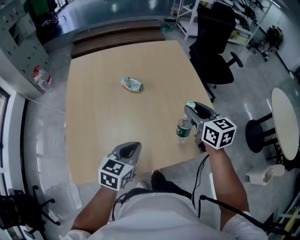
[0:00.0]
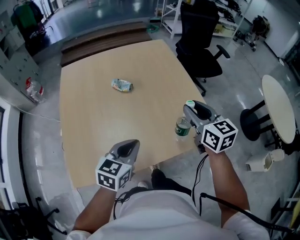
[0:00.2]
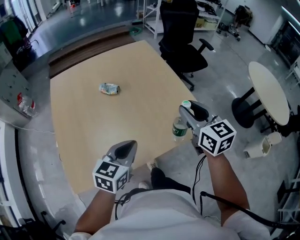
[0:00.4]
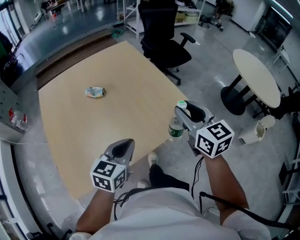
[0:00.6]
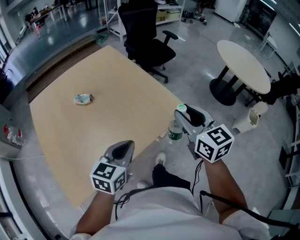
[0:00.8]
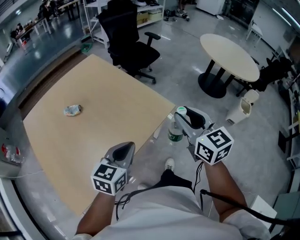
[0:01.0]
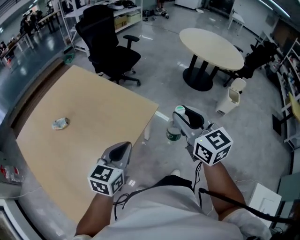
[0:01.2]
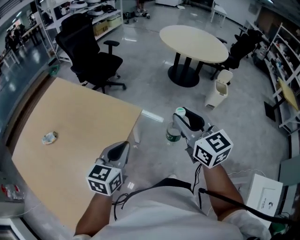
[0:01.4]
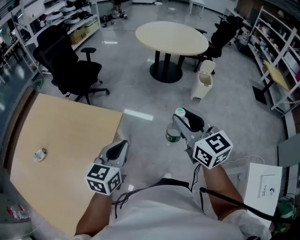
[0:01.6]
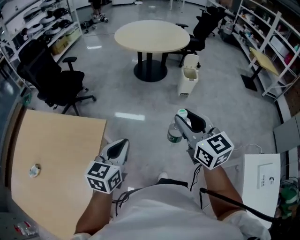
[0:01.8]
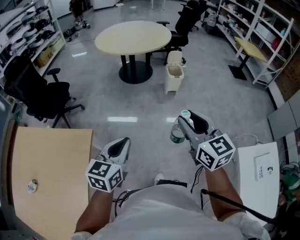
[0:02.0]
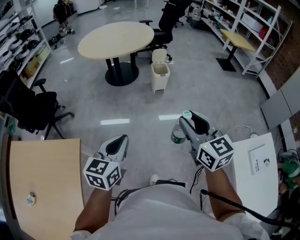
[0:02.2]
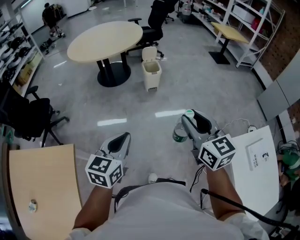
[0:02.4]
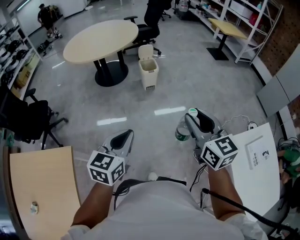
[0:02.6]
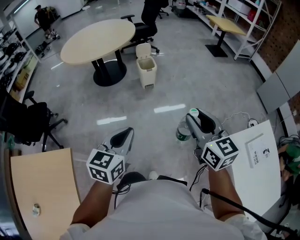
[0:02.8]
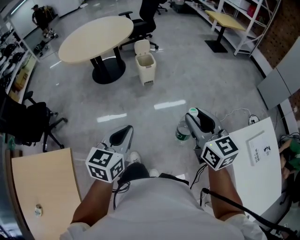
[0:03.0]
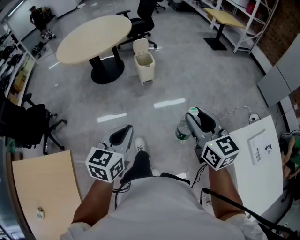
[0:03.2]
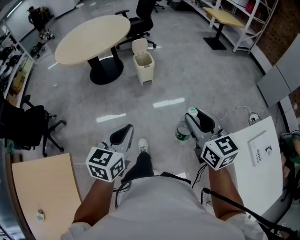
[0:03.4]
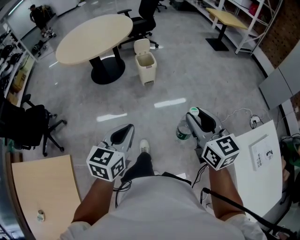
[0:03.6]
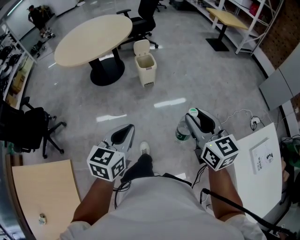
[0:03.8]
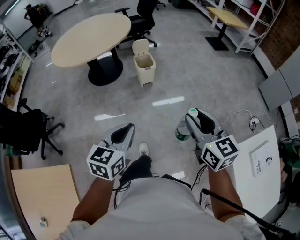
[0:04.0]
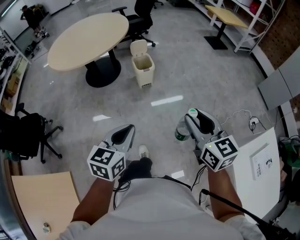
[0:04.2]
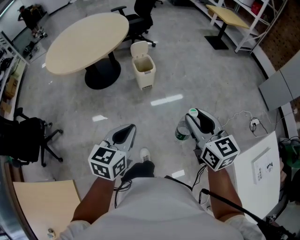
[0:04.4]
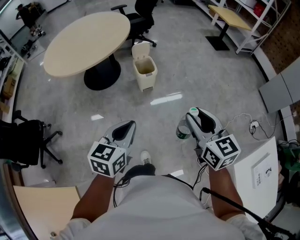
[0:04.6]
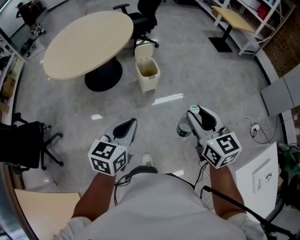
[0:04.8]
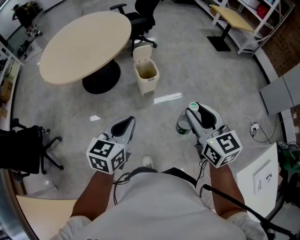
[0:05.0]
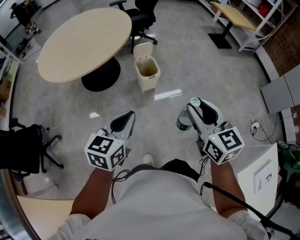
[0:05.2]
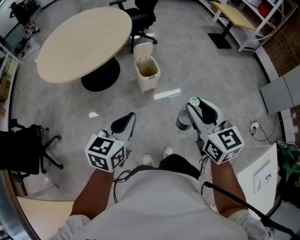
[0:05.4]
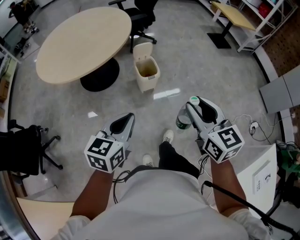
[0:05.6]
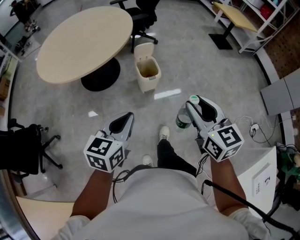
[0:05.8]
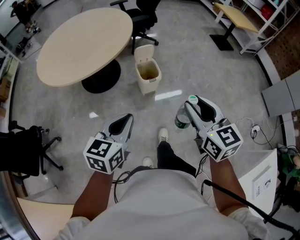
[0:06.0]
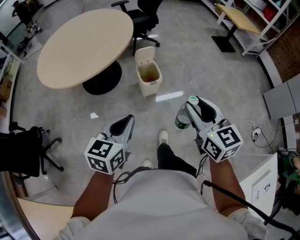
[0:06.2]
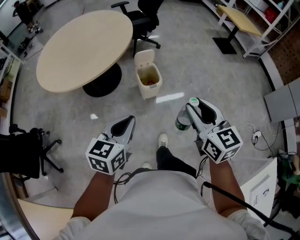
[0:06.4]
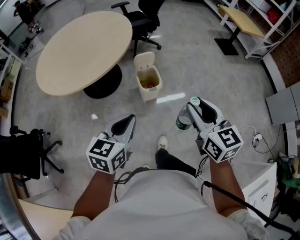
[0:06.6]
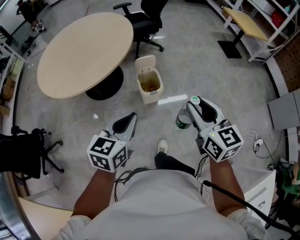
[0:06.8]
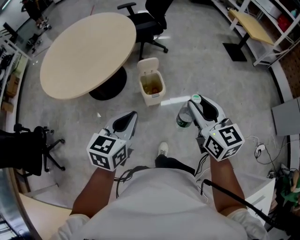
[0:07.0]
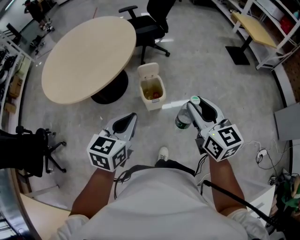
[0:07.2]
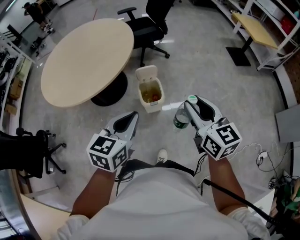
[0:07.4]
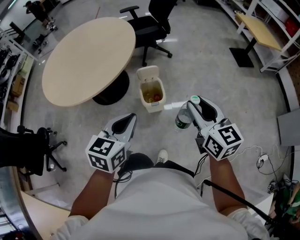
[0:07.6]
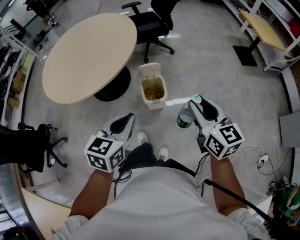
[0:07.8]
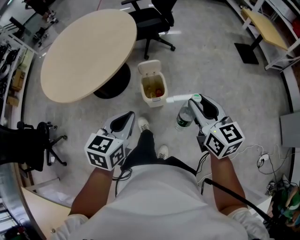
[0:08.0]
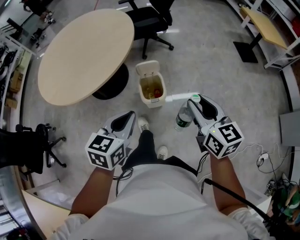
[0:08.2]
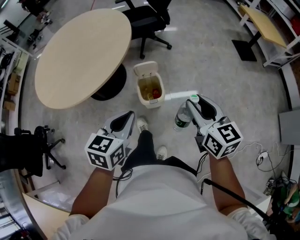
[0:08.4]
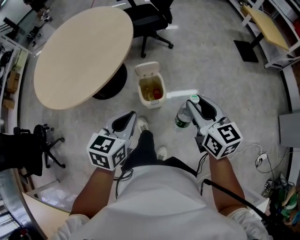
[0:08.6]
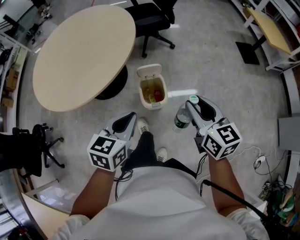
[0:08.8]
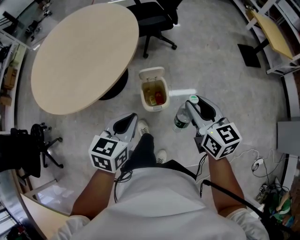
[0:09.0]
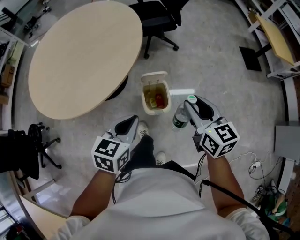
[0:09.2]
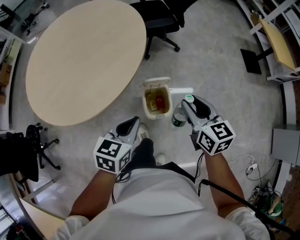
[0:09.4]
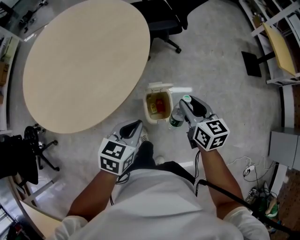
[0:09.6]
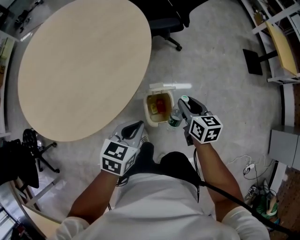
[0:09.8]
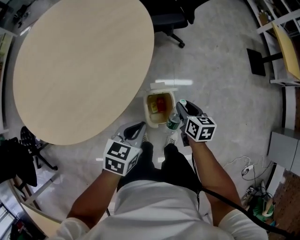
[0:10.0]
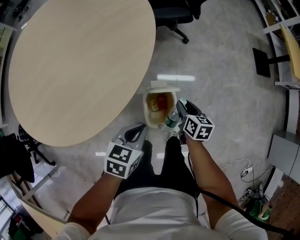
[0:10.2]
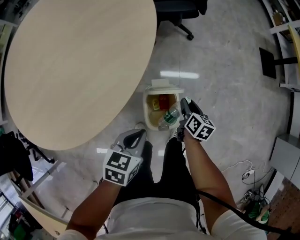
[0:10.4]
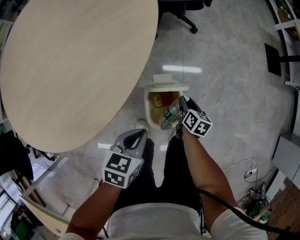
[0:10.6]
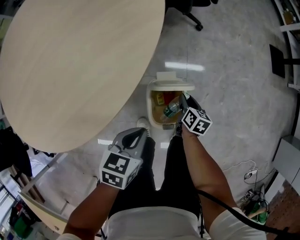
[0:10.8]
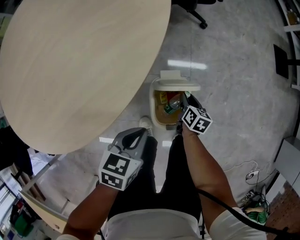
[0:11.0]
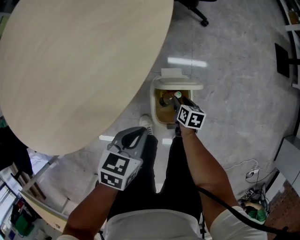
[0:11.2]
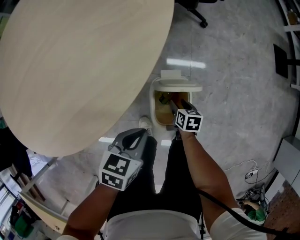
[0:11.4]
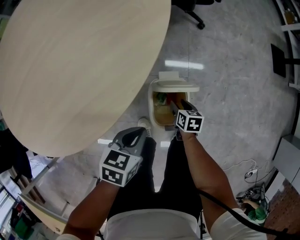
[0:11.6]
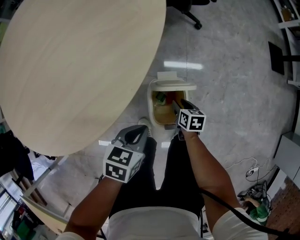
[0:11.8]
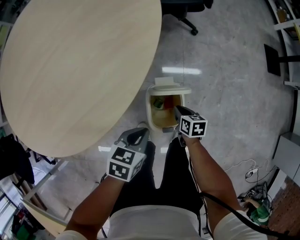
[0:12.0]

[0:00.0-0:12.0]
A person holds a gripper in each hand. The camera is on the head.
0:00.0 to 0:01.6: The left gripper changes place by about 35 cm, and rotates some 50 degrees. Meanwhile the right gripper shifts by roughly 50 cm, and swivels some 60 degrees.
0:01.6 to 0:03.0: The left gripper moves some 35 cm, and rotates about 30 degrees. Meanwhile the right gripper ends up approximately 35 cm from where it was, and changes its angle by about 40 degrees.
0:03.0 to 0:04.4: The grippers both shift forward by some 15 cm.
0:04.4 to 0:06.0: The right gripper heads forward and to the left, covering about 20 cm. The left gripper is displaced forward by some 20 cm.
0:06.0 to 0:07.6: The left gripper travels forward and to the right by some 20 cm, while the right gripper heads forward, covering some 20 cm.
0:07.6 to 0:09.0: Both grippers move forward and downward, some 15 cm.
0:09.0 to 0:10.4: The right gripper moves downward and forward, about 40 cm, and rotates approximately 40 degrees; the left gripper moves downward and forward, some 20 cm.
0:10.4 to 0:12.0: The left gripper is displaced downward by some 5 cm. The right gripper moves downward and backward, about 10 cm, turns by about 30 degrees, and closes its fingers.

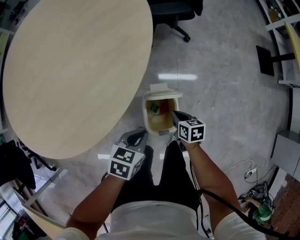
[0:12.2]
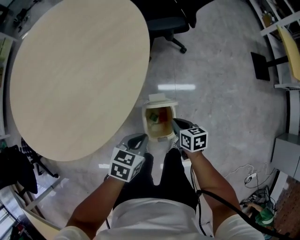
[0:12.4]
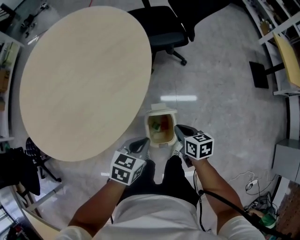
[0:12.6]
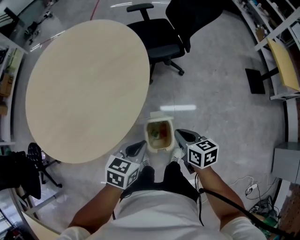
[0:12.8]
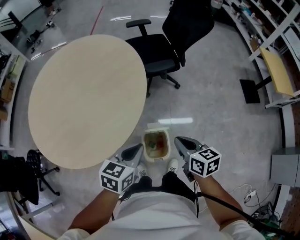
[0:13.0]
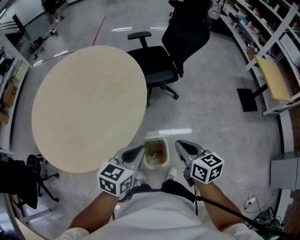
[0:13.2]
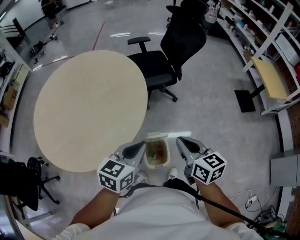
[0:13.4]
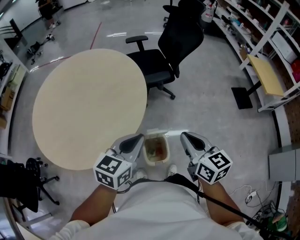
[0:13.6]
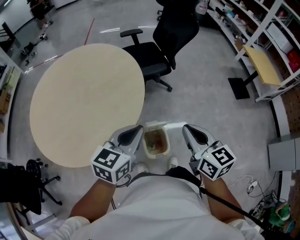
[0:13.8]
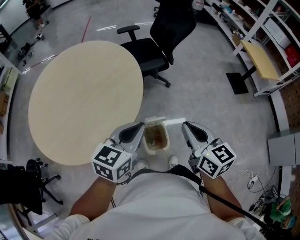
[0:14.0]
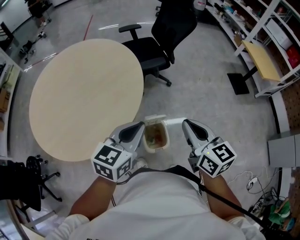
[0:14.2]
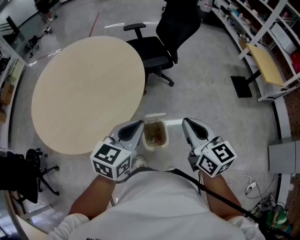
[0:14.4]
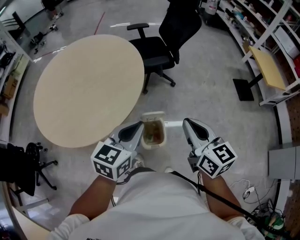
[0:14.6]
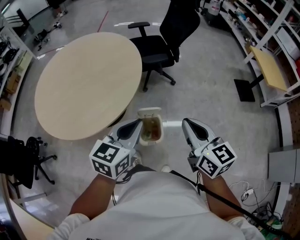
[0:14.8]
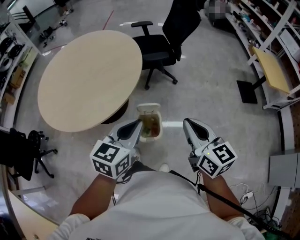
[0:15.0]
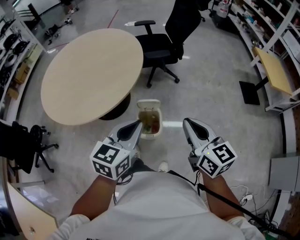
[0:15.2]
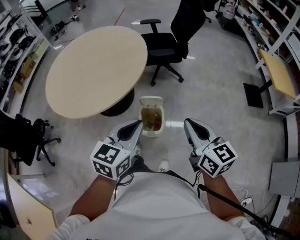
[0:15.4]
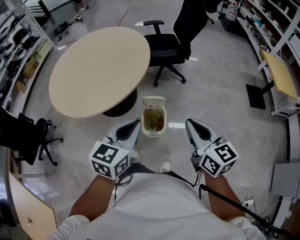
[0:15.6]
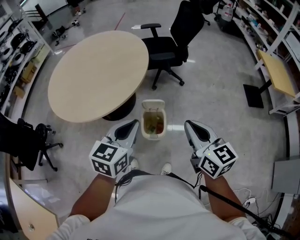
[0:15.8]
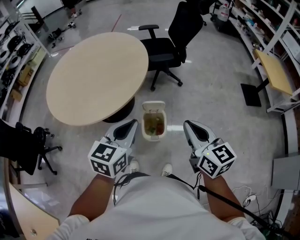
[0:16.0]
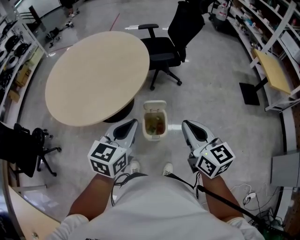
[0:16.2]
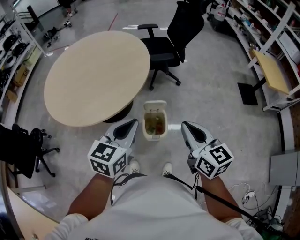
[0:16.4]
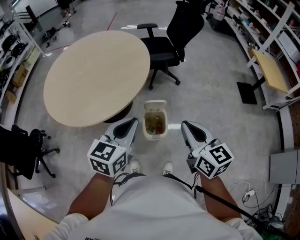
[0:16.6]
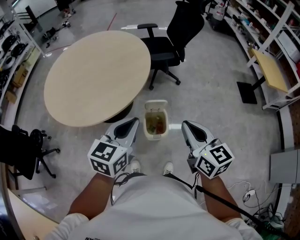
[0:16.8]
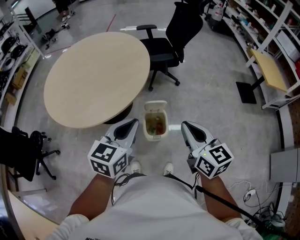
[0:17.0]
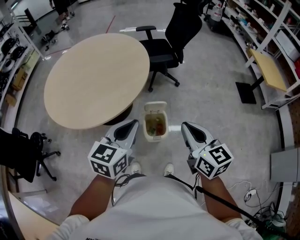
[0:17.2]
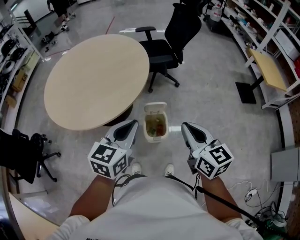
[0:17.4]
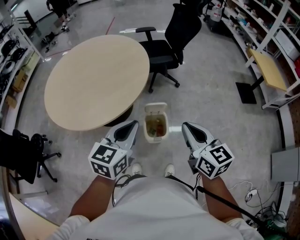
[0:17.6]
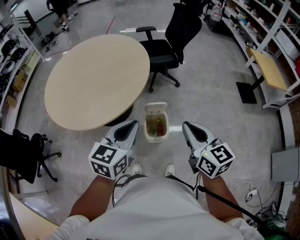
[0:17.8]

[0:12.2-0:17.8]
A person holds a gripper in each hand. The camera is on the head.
0:12.2 to 0:13.6: Both grippers move upward, roughly 35 cm. The right gripper points its fingers some 30 degrees further upward. Meanwhile the left gripper swivels roughly 30 degrees.
0:13.6 to 0:15.0: The left gripper moves backward and to the right, about 15 cm; the right gripper moves to the right and backward, some 10 cm.
0:15.0 to 0:16.4: The right gripper changes place by roughly 5 cm, while the left gripper moves to the left, roughly 5 cm.
0:16.4 to 0:17.8: Both grippers stay about where they are.

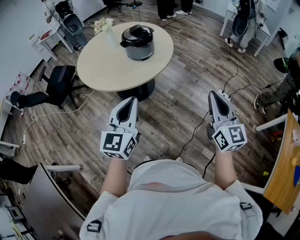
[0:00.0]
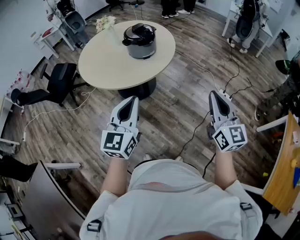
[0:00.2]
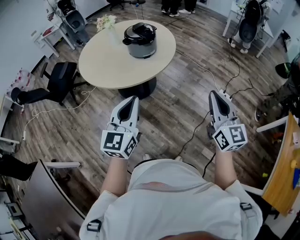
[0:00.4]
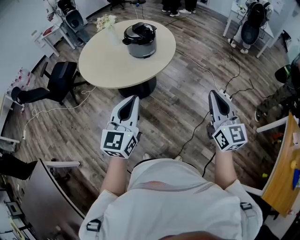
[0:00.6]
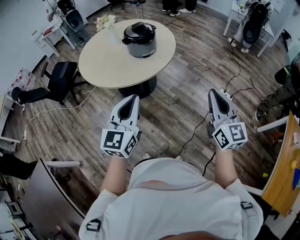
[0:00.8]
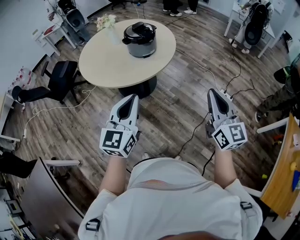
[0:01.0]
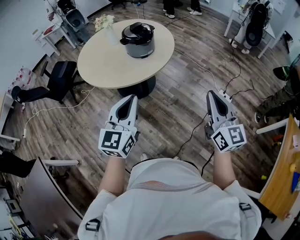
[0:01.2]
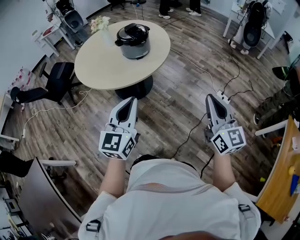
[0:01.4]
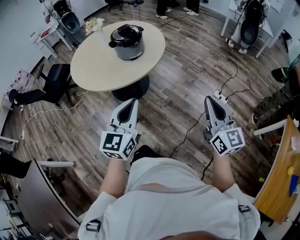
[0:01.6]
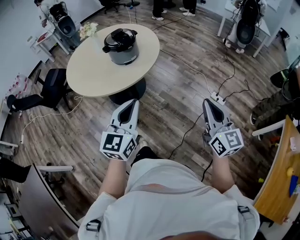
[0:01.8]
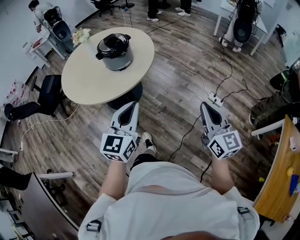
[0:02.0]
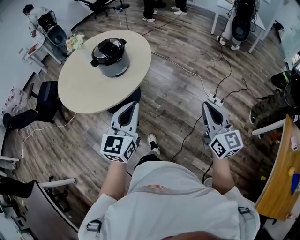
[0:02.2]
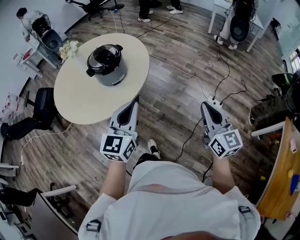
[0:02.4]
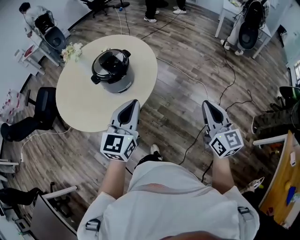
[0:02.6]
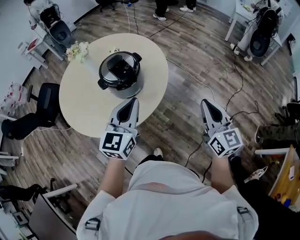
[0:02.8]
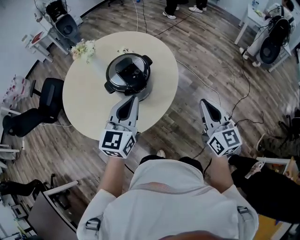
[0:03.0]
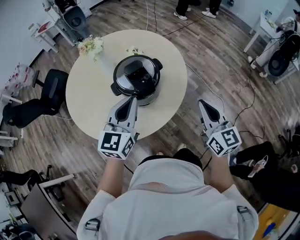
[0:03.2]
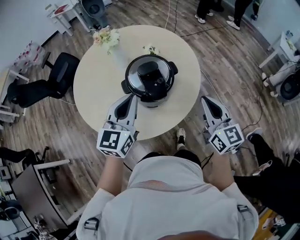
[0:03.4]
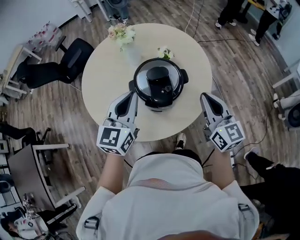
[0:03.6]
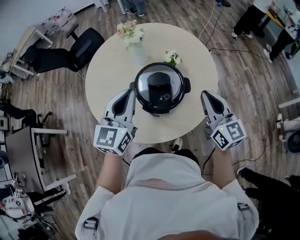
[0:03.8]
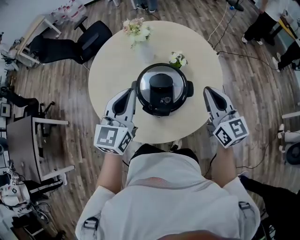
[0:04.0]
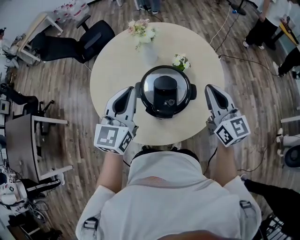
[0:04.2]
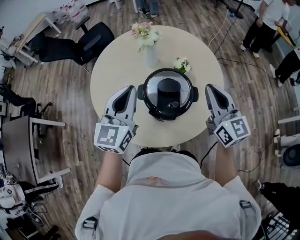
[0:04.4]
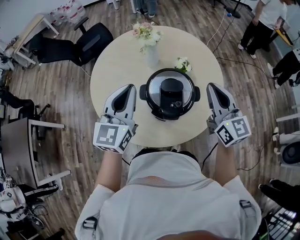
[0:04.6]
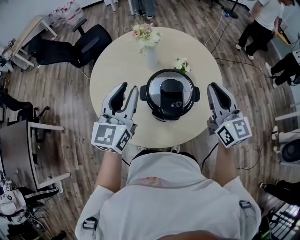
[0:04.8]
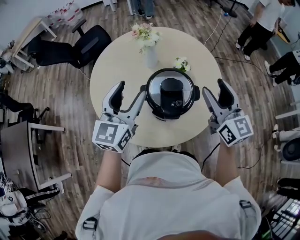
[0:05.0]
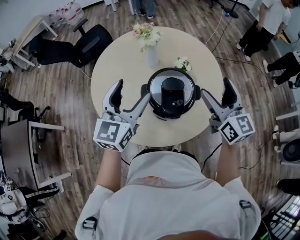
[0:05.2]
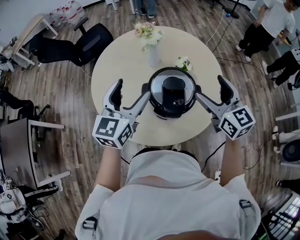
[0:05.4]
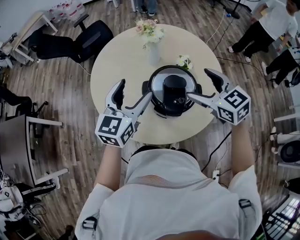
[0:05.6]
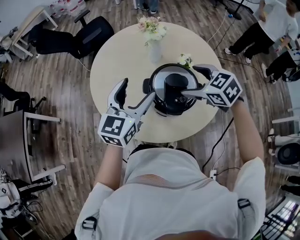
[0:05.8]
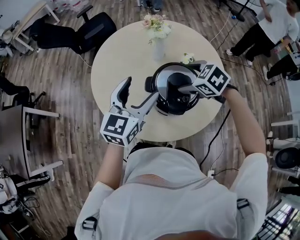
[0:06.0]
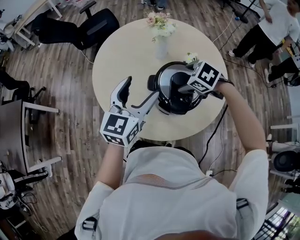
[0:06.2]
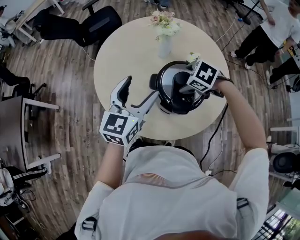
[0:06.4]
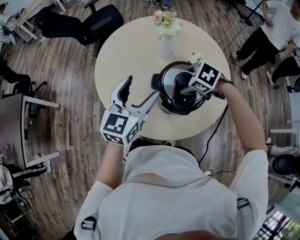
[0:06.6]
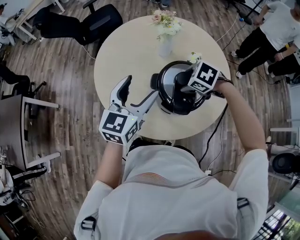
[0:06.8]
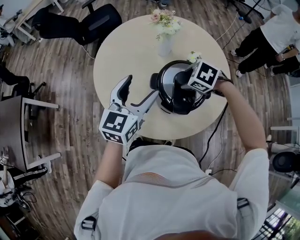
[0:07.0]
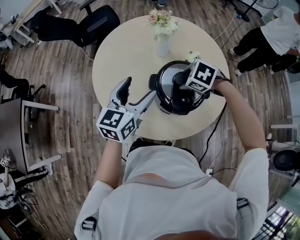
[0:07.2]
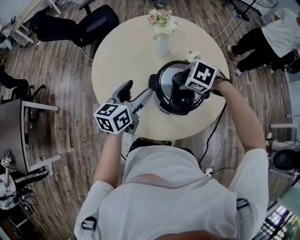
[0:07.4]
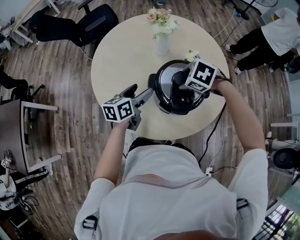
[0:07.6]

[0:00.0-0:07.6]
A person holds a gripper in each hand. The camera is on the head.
0:00.0 to 0:01.6: Both grippers travel together to the right, about 10 cm.
0:01.6 to 0:03.0: The two grippers travel together, forward, about 50 cm.
0:03.0 to 0:04.6: The right gripper moves roughly 35 cm, and rotates some 40 degrees. The left gripper changes place by about 20 cm, and swivels about 40 degrees.
0:04.6 to 0:06.0: The right gripper moves downward, to the left and forward, about 20 cm, tilts its fingers about 60 degrees downward, and opens its fingers. The left gripper opens up.
0:06.0 to 0:07.6: The left gripper moves downward, approximately 15 cm, and swivels approximately 40 degrees, while the right gripper heads downward, covering roughly 5 cm, and closes.
